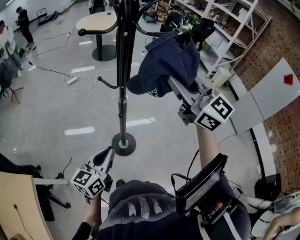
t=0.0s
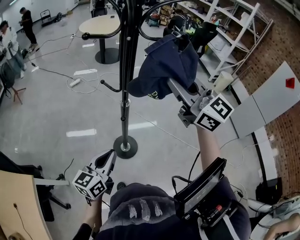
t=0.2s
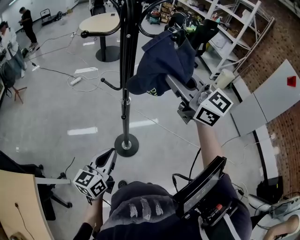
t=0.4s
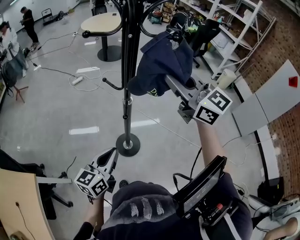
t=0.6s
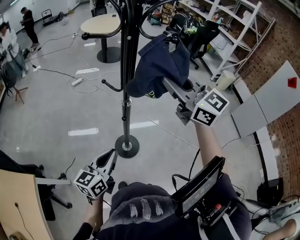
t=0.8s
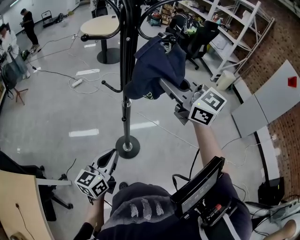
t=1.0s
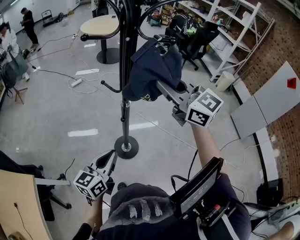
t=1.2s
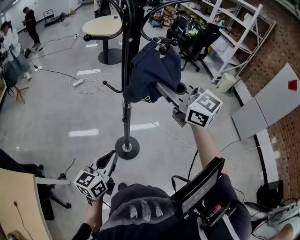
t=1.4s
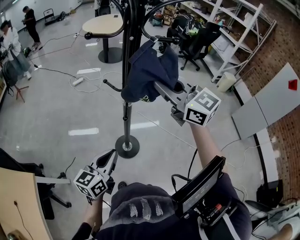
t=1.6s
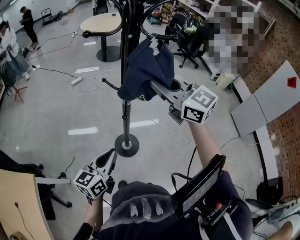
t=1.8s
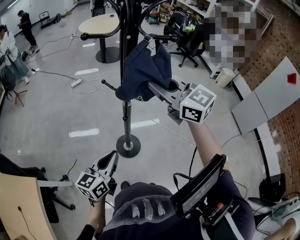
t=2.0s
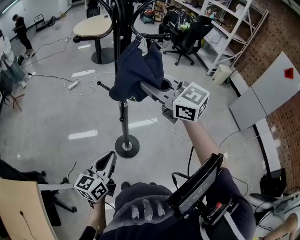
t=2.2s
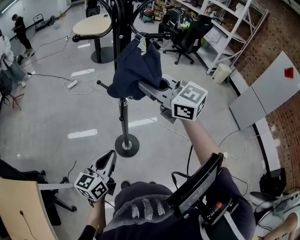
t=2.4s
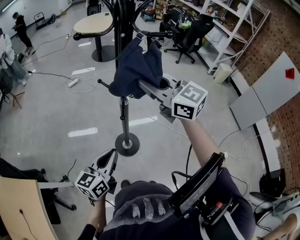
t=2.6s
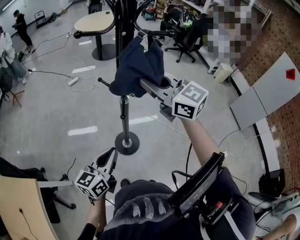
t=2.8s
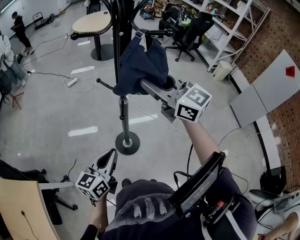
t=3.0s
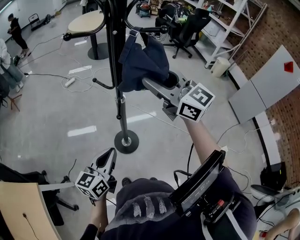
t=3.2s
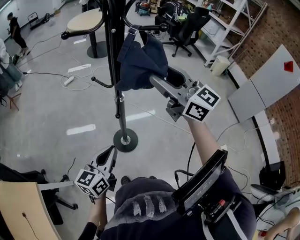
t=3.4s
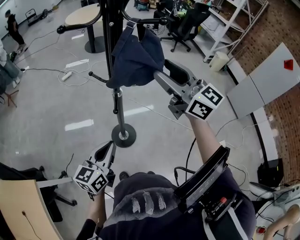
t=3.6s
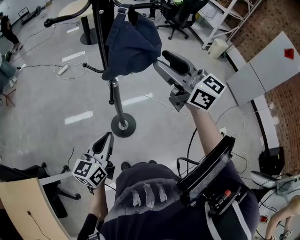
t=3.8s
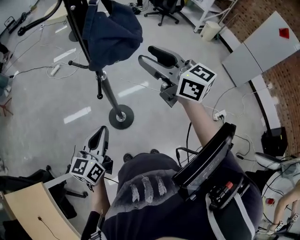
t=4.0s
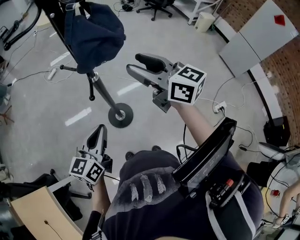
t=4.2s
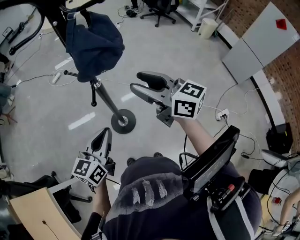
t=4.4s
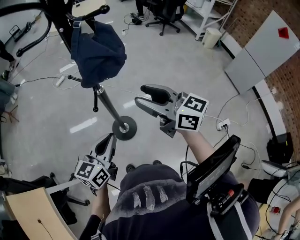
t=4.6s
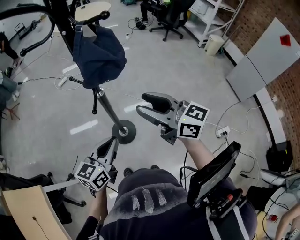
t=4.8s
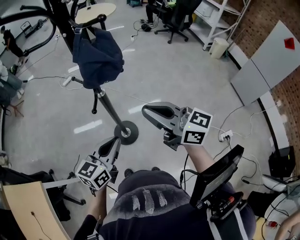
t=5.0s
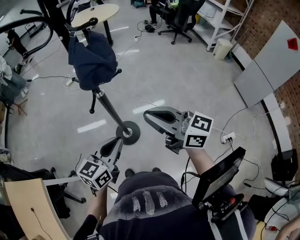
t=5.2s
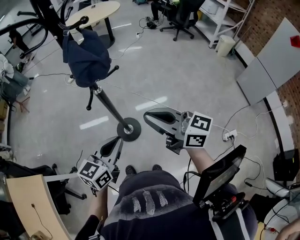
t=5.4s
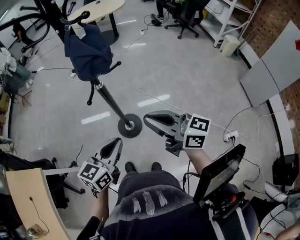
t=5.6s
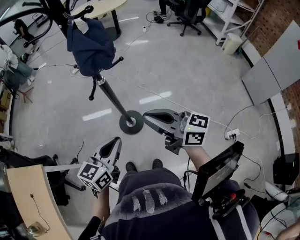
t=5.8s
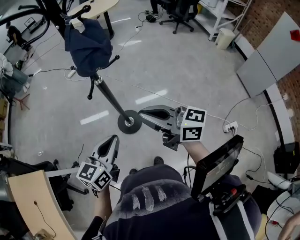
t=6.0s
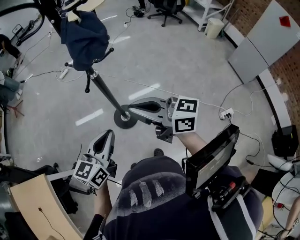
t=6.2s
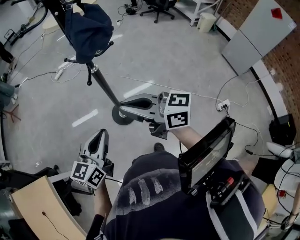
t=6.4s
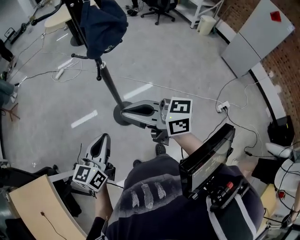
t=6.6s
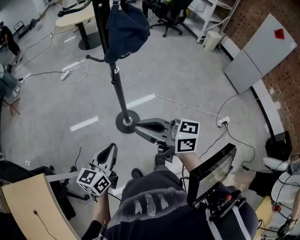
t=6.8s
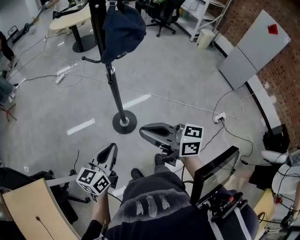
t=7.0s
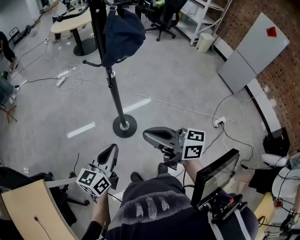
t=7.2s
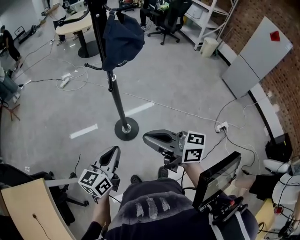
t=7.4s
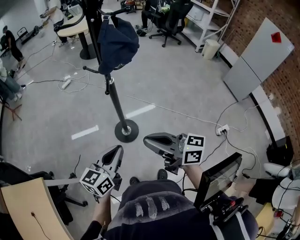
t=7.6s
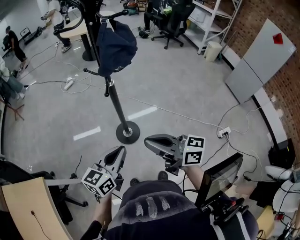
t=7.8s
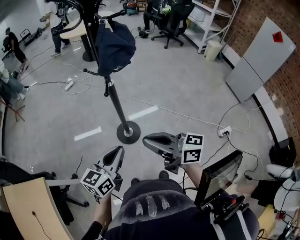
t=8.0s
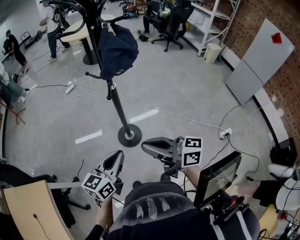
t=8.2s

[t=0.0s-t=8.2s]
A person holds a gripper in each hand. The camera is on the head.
t=0.0s to t=1.6s: The right gripper ends up some 5 cm from where it was.
t=1.6s to t=3.2s: The right gripper opens.
t=3.2s to t=5.0s: The right gripper heads backward, downward and to the right, covering about 15 cm, changes its angle by about 20 degrees, and closes up; the left gripper shifts about 10 cm to the right.
t=5.0s to t=6.6s: Both grippers travel together to the left and backward, some 15 cm.
t=6.6s to t=8.2s: The right gripper goes about 5 cm backward.

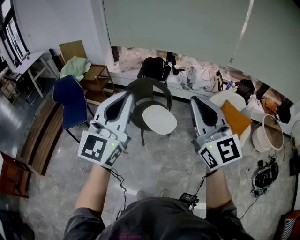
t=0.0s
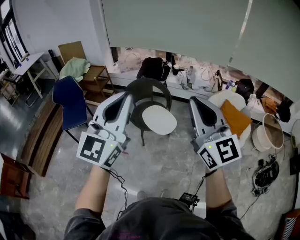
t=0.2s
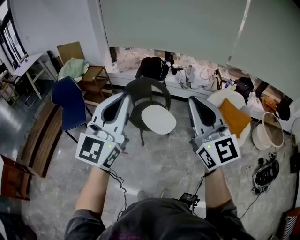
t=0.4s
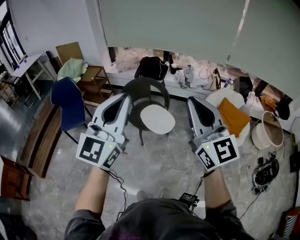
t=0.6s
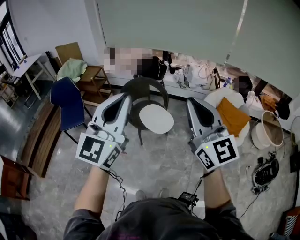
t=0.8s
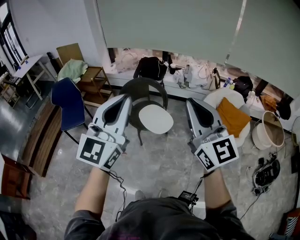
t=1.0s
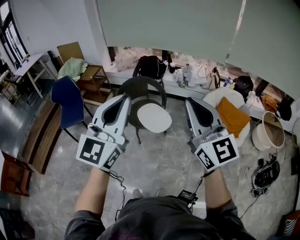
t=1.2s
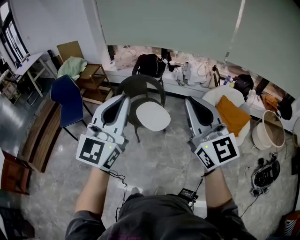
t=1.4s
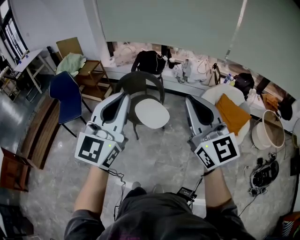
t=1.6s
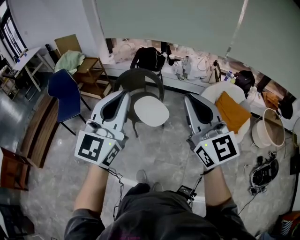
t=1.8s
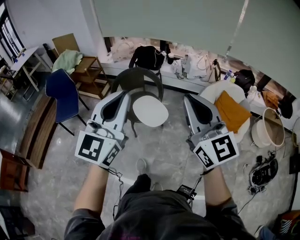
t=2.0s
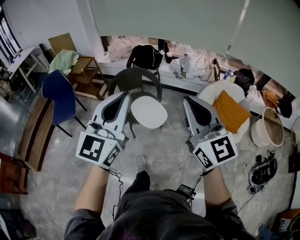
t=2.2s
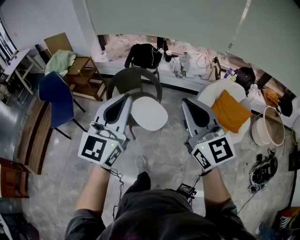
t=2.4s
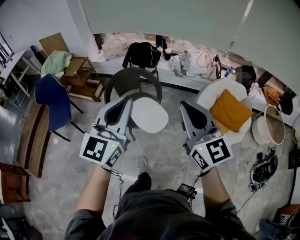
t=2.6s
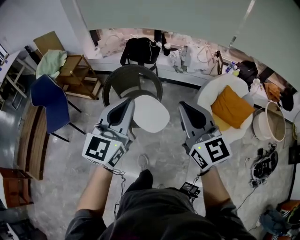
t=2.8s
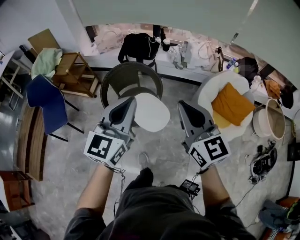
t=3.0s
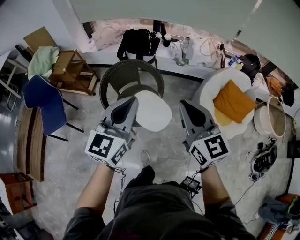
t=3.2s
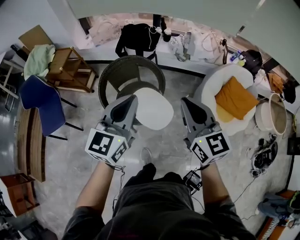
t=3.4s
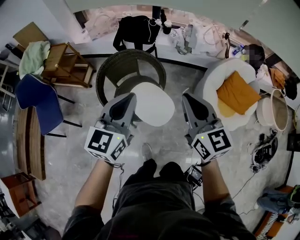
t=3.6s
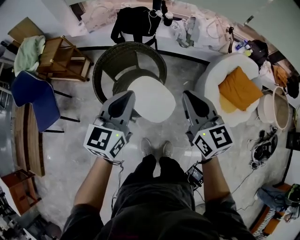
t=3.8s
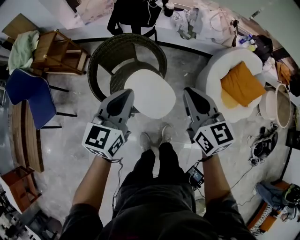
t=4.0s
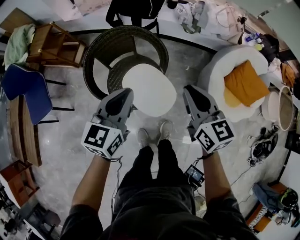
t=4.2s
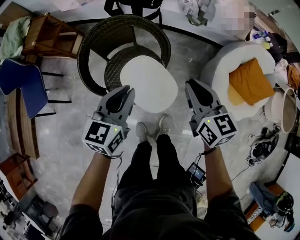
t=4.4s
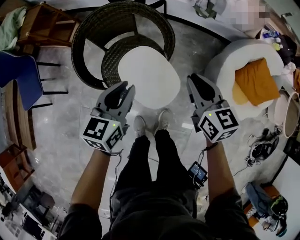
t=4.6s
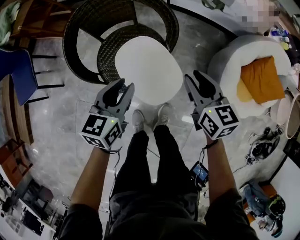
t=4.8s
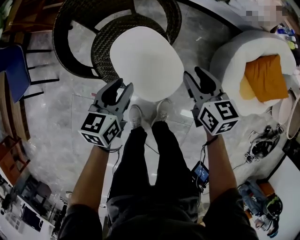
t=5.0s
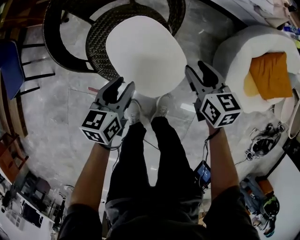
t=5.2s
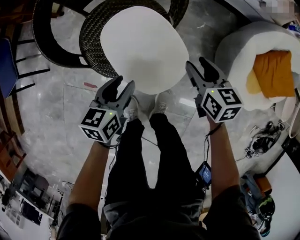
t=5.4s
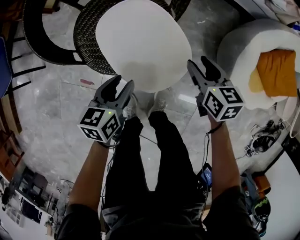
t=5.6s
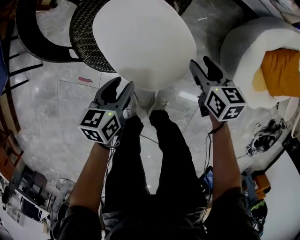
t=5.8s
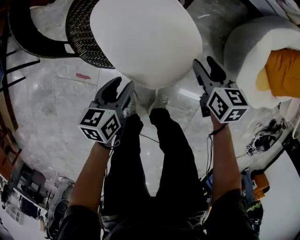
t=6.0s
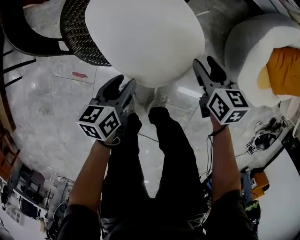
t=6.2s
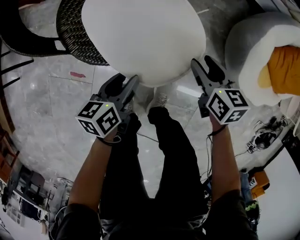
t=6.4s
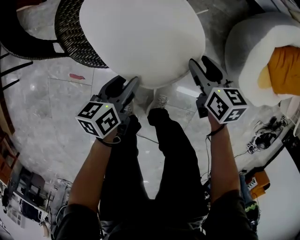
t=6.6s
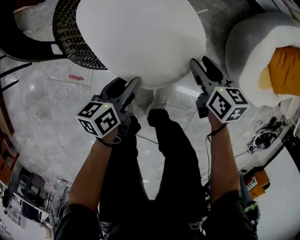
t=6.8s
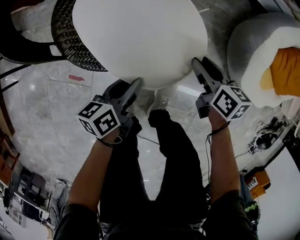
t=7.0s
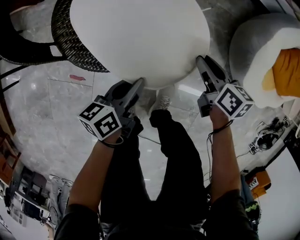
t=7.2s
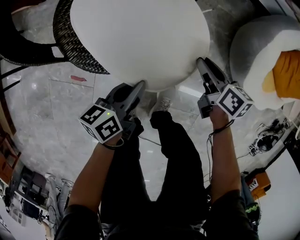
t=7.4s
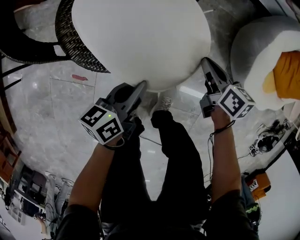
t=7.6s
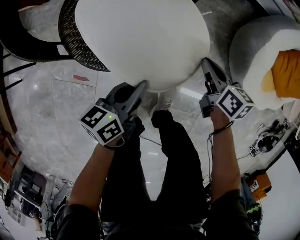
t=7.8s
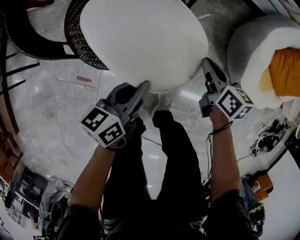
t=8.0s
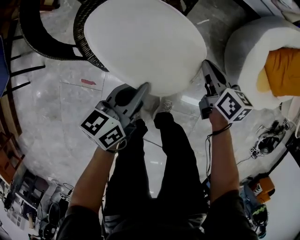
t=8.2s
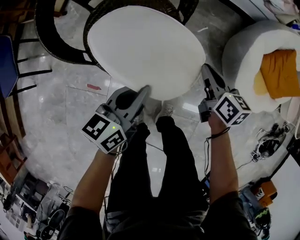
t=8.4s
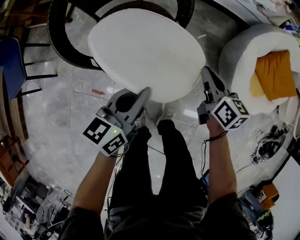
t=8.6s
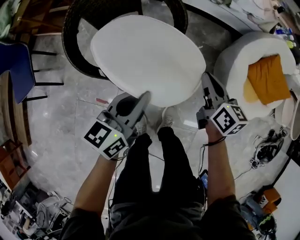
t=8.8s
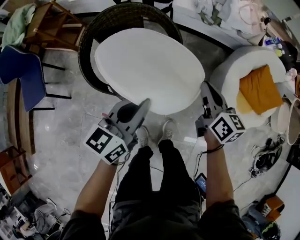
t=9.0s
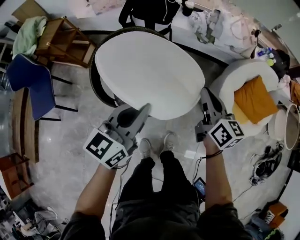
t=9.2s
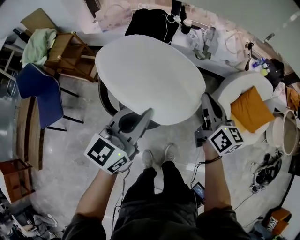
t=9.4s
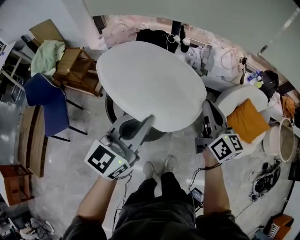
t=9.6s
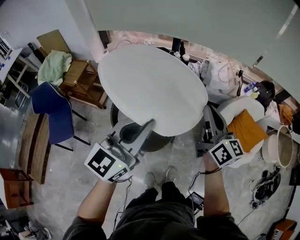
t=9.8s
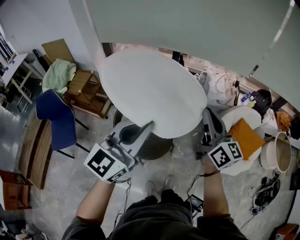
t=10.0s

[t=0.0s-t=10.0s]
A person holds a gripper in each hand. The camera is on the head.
t=0.0s to t=1.4s: The two grippers go approximately 10 cm to the right.
t=1.4s to t=2.8s: The two grippers go approximately 25 cm forward and downward.
t=2.8s to t=4.2s: Both grippers travel together downward and forward, approximately 35 cm. The left gripper turns by some 30 degrees, while the right gripper rotates some 20 degrees.
t=4.2s to t=5.8s: The grippers both shift downward by approximately 50 cm. The right gripper turns by about 30 degrees, and opens up; the left gripper swivels some 40 degrees, and opens.
t=5.8s to t=7.2s: The grippers both shift downward by approximately 10 cm. The right gripper rotates some 20 degrees. Meanwhile the left gripper swivels some 20 degrees, and closes its fingers.
t=7.2s to t=8.6s: The grippers both shift upward by about 25 cm. The right gripper closes up. The left gripper changes its angle by roughly 30 degrees.
t=8.6s to t=10.0s: The grippers both shift upward by some 60 cm. The left gripper swivels about 50 degrees. The right gripper tilts its fingers about 40 degrees upward.

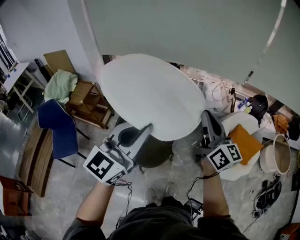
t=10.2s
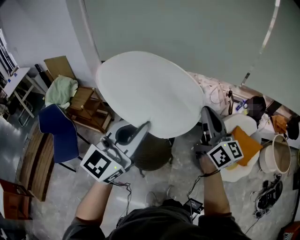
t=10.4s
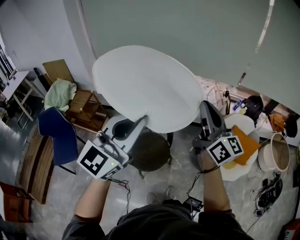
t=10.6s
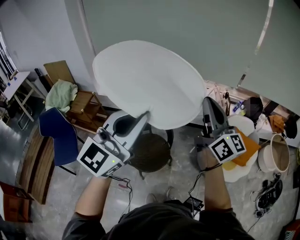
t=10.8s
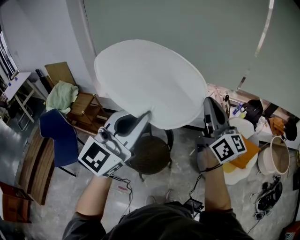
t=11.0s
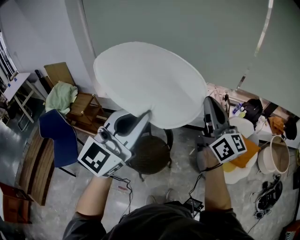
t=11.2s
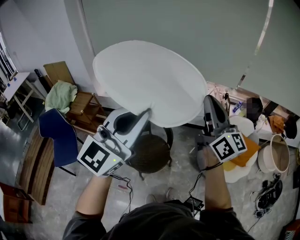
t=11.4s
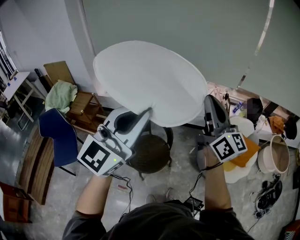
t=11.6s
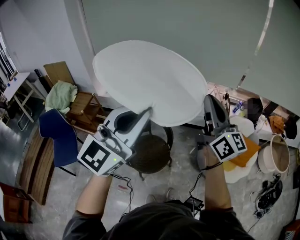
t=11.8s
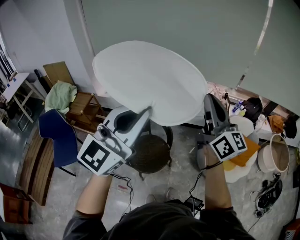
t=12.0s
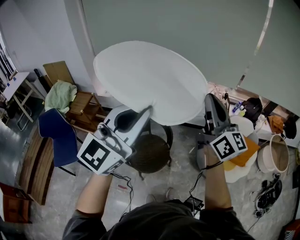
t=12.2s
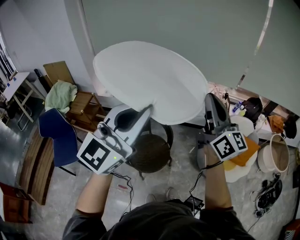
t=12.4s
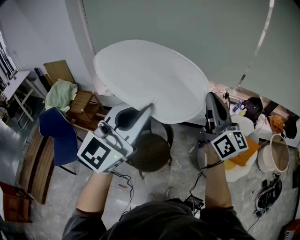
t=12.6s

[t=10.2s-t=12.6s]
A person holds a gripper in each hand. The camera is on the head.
t=10.2s to t=11.4s: The grippers both shift upward by approximately 10 cm.
t=11.4s to t=12.6s: There are only small adjustments of the grippers.

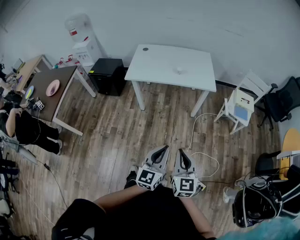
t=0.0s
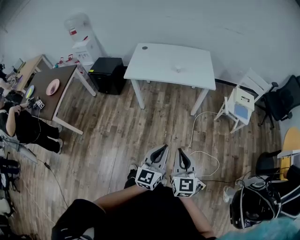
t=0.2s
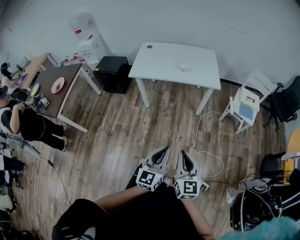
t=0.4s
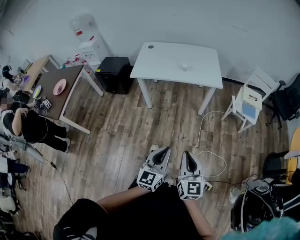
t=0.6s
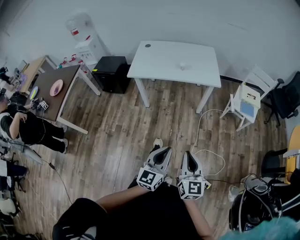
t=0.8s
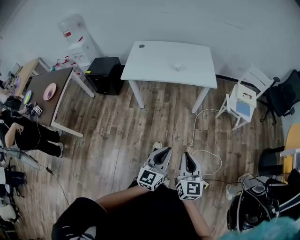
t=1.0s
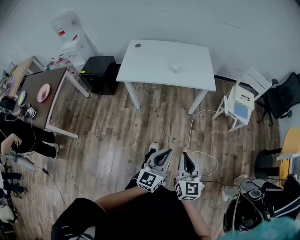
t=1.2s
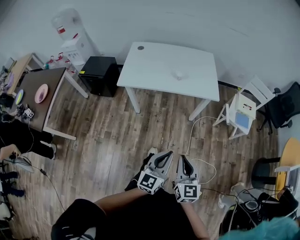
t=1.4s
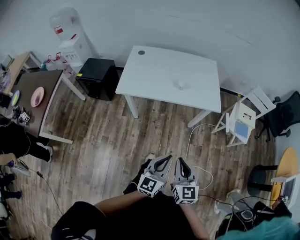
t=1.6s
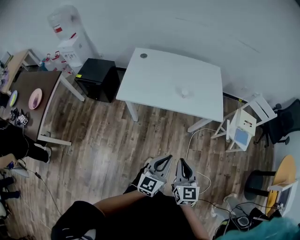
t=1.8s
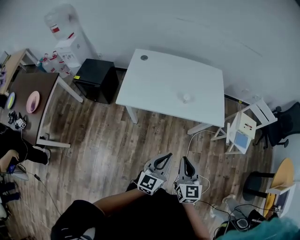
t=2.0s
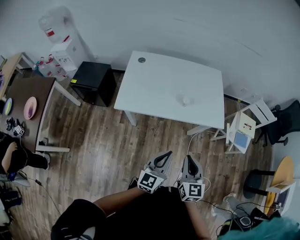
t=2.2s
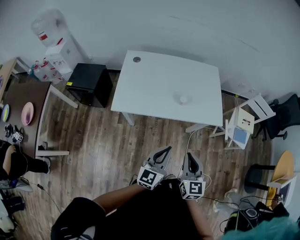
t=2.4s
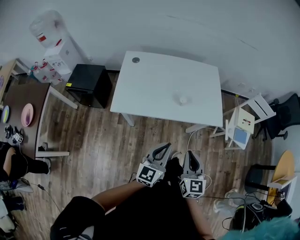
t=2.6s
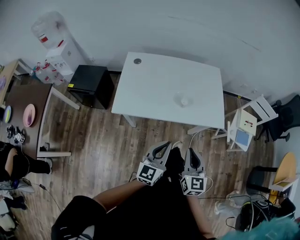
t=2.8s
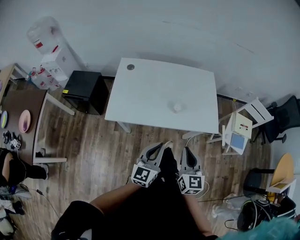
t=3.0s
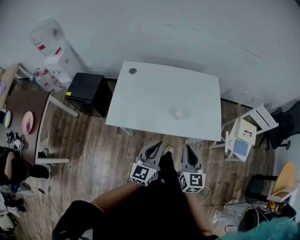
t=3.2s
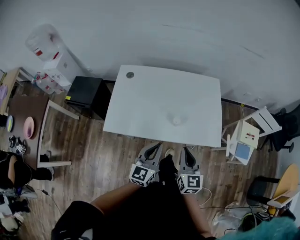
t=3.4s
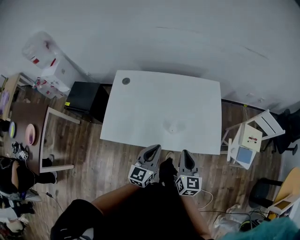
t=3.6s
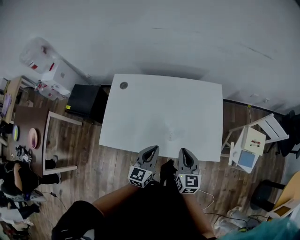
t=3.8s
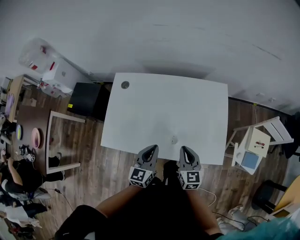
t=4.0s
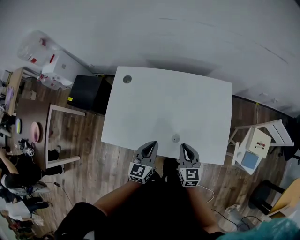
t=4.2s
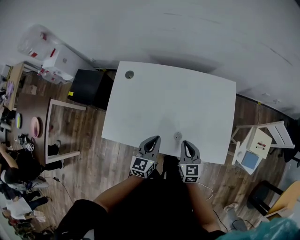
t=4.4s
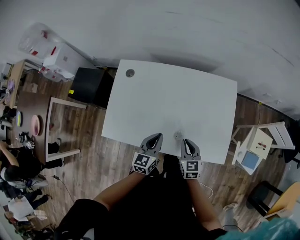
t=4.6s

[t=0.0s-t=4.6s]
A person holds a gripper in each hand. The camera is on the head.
t=0.0s to t=1.6s: Both grippers move forward, roughly 20 cm.
t=1.6s to t=3.0s: The right gripper travels forward by some 25 cm; the left gripper is displaced forward and to the left by approximately 25 cm.
t=3.0s to t=4.6s: The two grippers go about 35 cm forward and downward. The right gripper swivels approximately 20 degrees. The left gripper rotates some 20 degrees.
